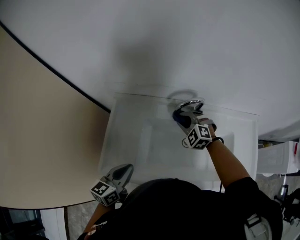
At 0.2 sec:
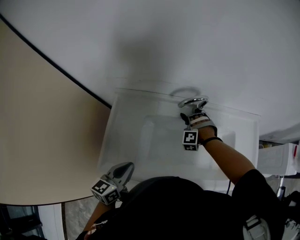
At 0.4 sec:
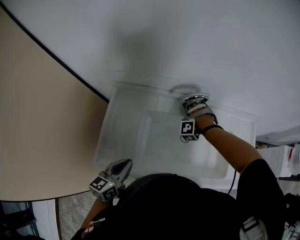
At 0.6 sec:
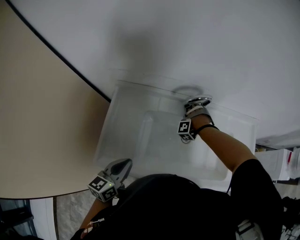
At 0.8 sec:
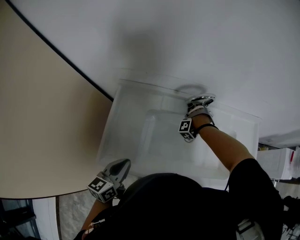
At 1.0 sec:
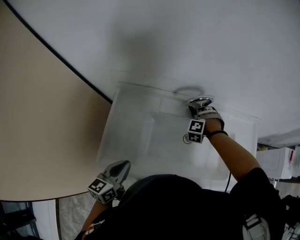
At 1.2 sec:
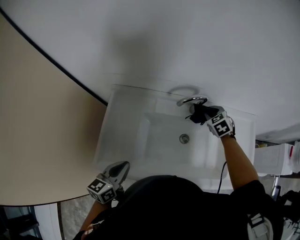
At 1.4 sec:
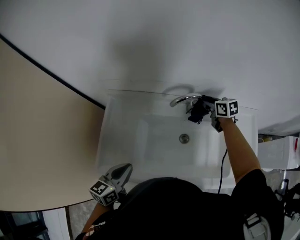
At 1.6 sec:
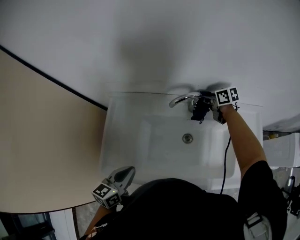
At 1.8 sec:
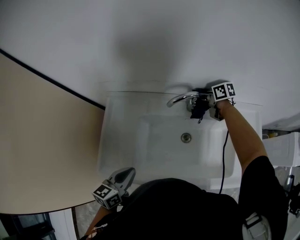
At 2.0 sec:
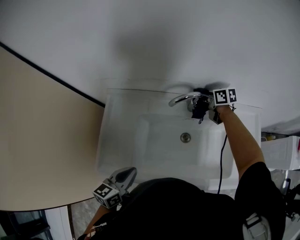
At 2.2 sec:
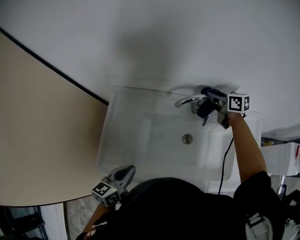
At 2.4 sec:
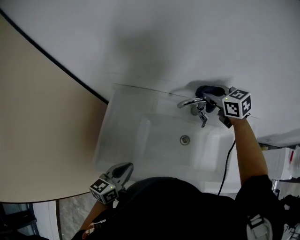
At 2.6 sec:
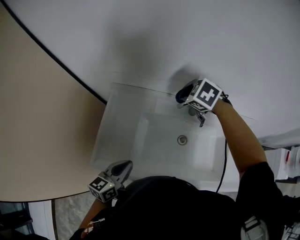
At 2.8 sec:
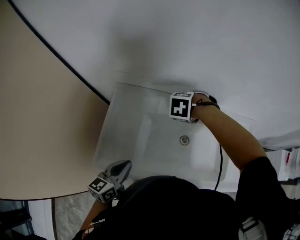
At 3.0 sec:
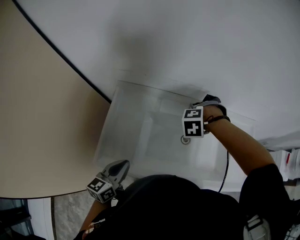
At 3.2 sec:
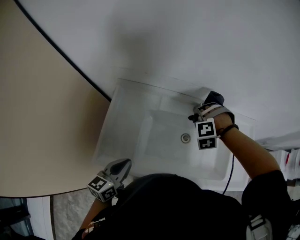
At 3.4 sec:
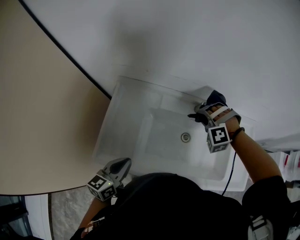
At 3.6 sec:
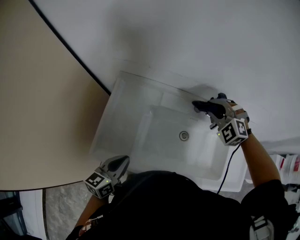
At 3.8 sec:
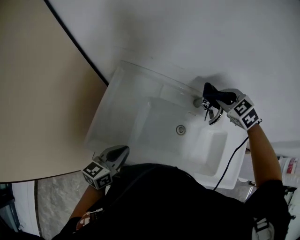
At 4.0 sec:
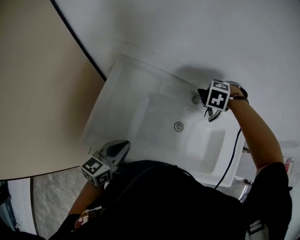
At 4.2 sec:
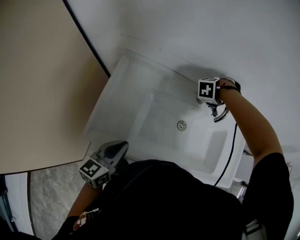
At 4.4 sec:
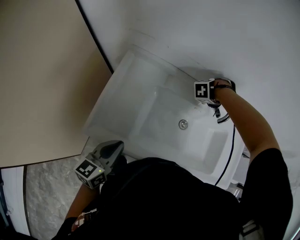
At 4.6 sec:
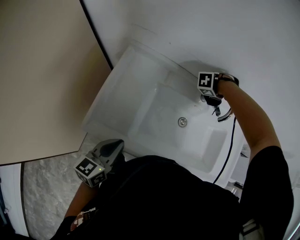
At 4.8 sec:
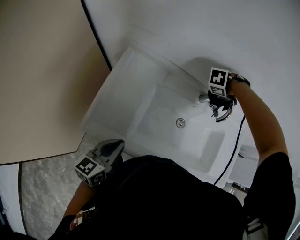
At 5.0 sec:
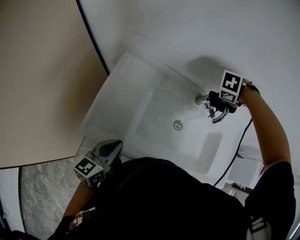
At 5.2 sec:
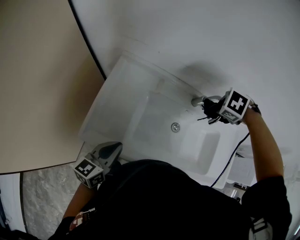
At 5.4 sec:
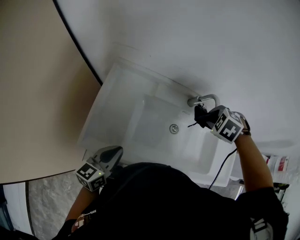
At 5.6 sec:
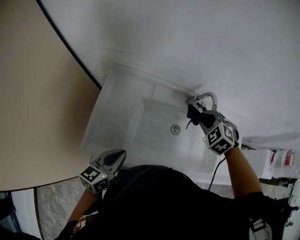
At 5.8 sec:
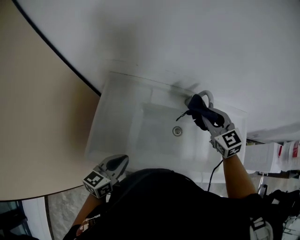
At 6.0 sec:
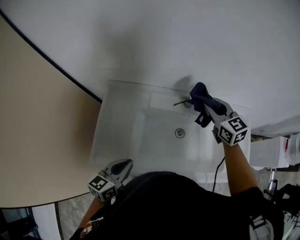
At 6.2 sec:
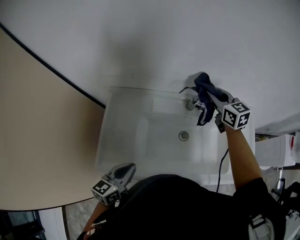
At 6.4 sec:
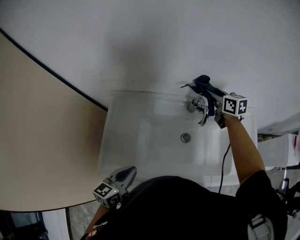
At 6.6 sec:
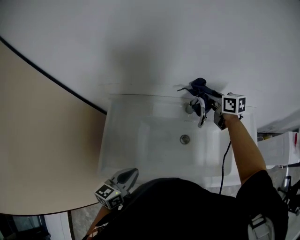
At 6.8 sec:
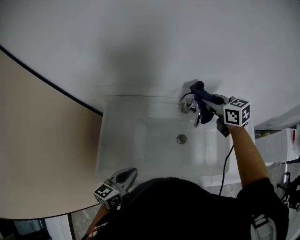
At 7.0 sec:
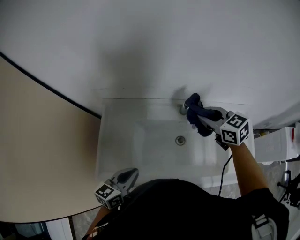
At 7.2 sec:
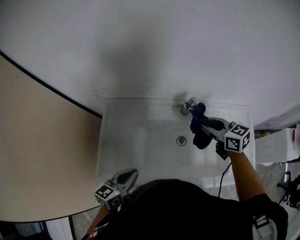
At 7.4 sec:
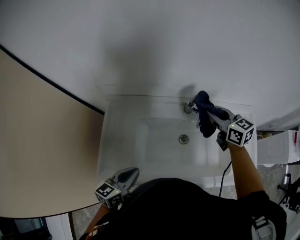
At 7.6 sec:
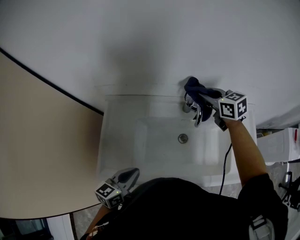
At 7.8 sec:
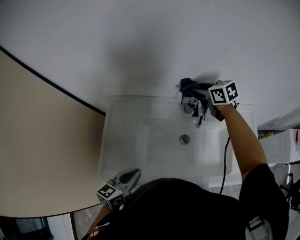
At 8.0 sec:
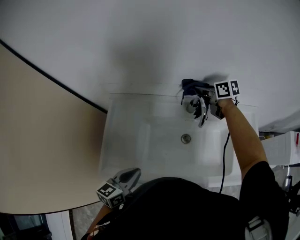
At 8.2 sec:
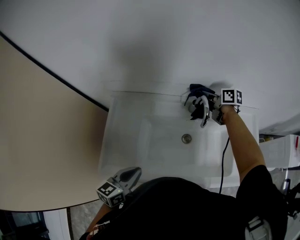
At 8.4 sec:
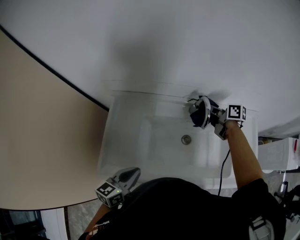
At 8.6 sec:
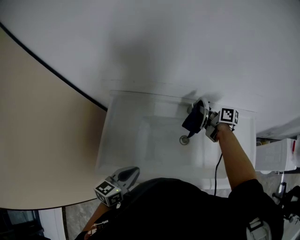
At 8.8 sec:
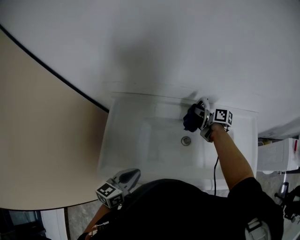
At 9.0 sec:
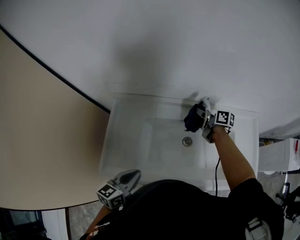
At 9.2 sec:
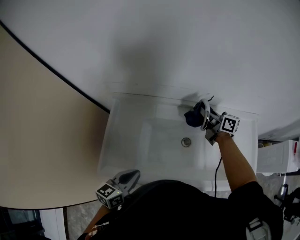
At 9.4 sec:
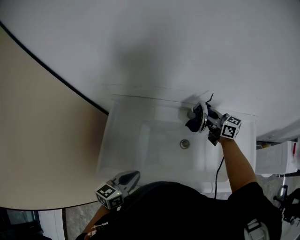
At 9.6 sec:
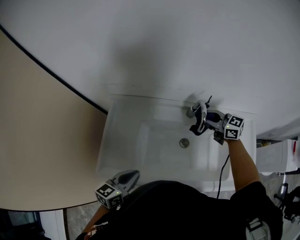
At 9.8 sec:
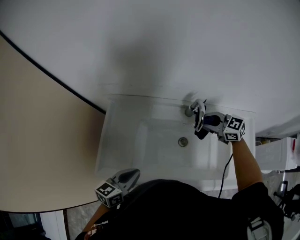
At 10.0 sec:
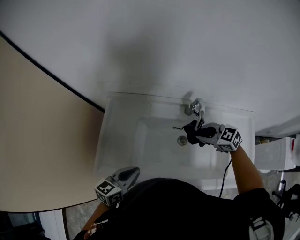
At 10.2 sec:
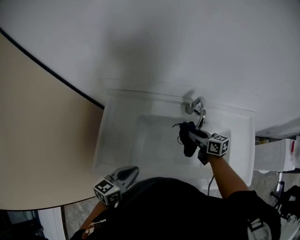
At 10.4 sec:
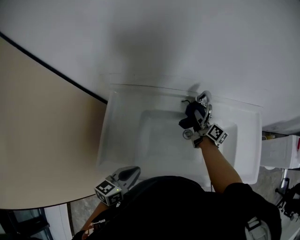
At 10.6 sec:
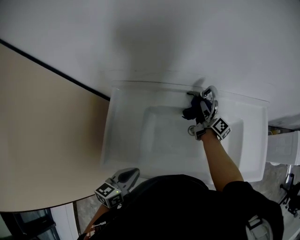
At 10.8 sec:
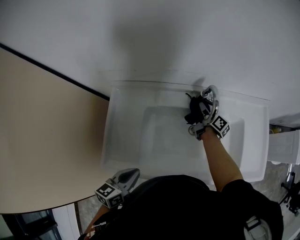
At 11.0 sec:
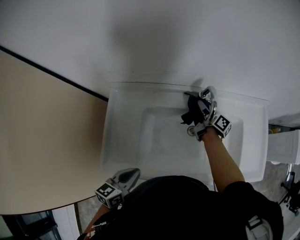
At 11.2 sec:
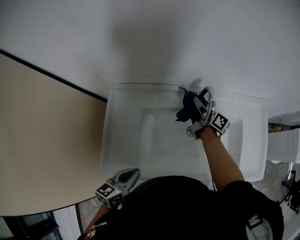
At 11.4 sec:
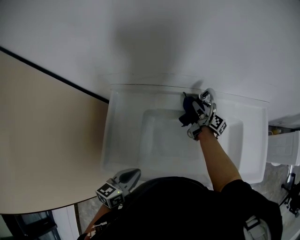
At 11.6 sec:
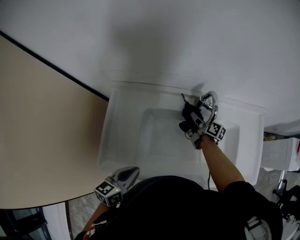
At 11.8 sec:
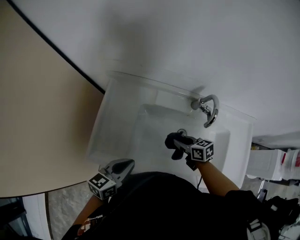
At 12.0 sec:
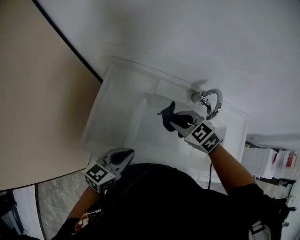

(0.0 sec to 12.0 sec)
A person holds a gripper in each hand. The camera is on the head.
0.0 sec - 1.6 sec: The right gripper travels downward and back again, roughly 15 cm each way, and rolls clockwise, seen from behind, by approximately 80 degrees.
1.6 sec - 3.0 sec: The left gripper changes place by roughly 5 cm. Meanwhile the right gripper travels upward and back again, approximately 15 cm each way, and tips its fingers downward by about 40 degrees.
3.0 sec - 4.4 sec: The right gripper ends up approximately 15 cm from where it was, and rotates about 30 degrees.
4.4 sec - 6.0 sec: The left gripper moves roughly 10 cm, while the right gripper travels upward by roughly 20 cm, and tilts its fingers approximately 30 degrees upward.
6.0 sec - 7.6 sec: The right gripper swings forward and backward, about 15 cm each way, with 2 reversals.
7.6 sec - 9.0 sec: The right gripper heads downward, covering some 15 cm, and twists roughly 40 degrees clockwise, seen from behind.
9.0 sec - 10.4 sec: The right gripper heads downward, covering about 5 cm, and turns by about 20 degrees.
10.4 sec - 12.0 sec: The right gripper goes up and down, about 15 cm each way, reversing 3 times, and angles its fingers downward, by roughly 40 degrees.

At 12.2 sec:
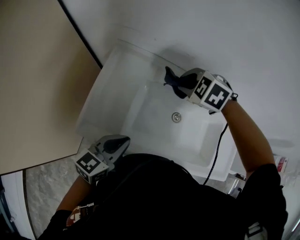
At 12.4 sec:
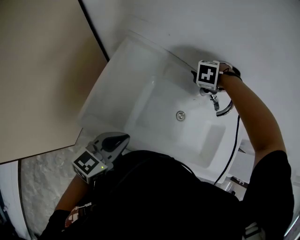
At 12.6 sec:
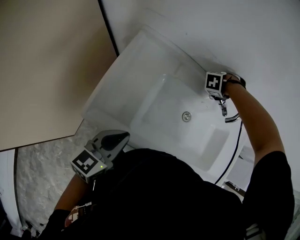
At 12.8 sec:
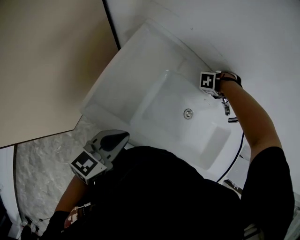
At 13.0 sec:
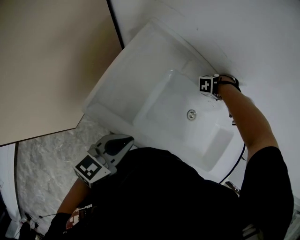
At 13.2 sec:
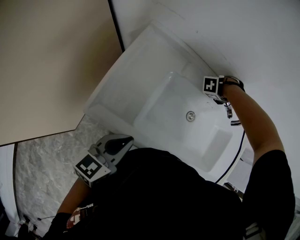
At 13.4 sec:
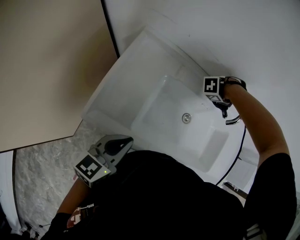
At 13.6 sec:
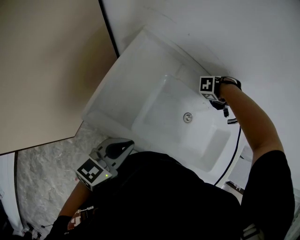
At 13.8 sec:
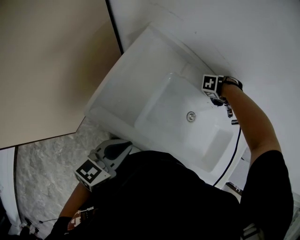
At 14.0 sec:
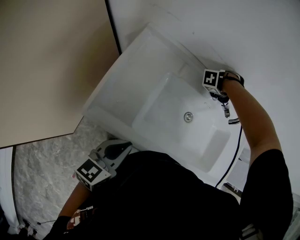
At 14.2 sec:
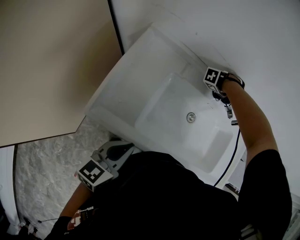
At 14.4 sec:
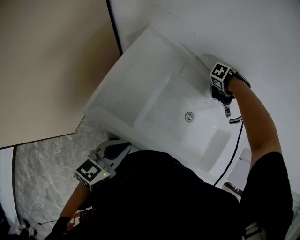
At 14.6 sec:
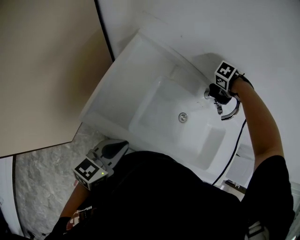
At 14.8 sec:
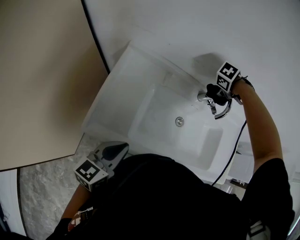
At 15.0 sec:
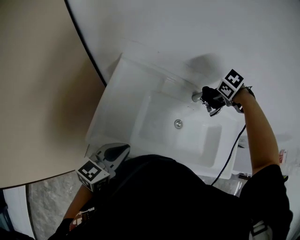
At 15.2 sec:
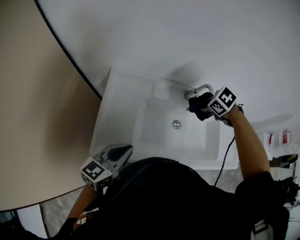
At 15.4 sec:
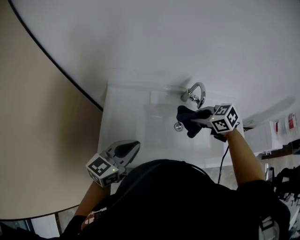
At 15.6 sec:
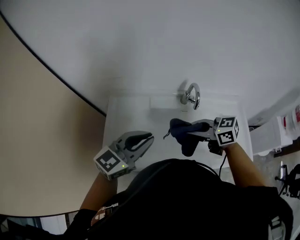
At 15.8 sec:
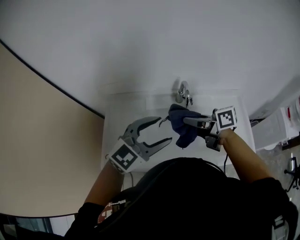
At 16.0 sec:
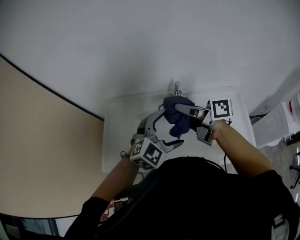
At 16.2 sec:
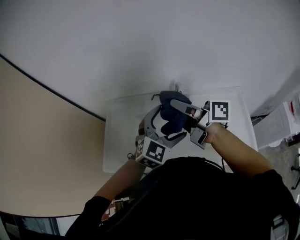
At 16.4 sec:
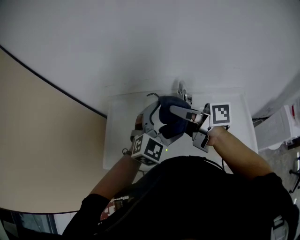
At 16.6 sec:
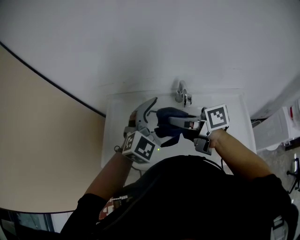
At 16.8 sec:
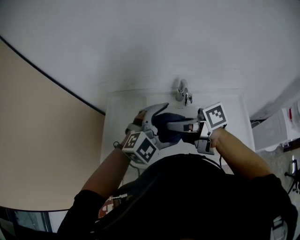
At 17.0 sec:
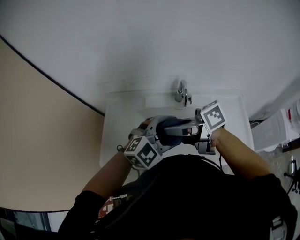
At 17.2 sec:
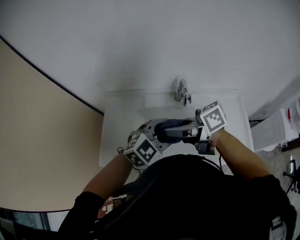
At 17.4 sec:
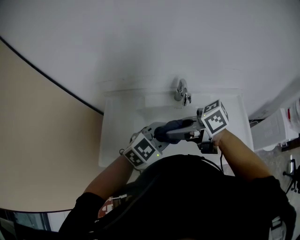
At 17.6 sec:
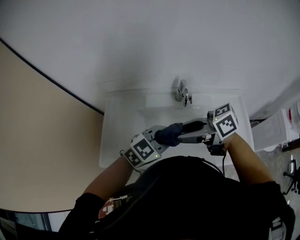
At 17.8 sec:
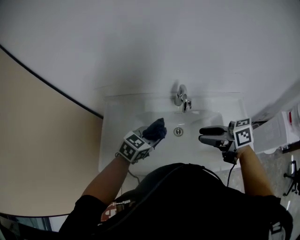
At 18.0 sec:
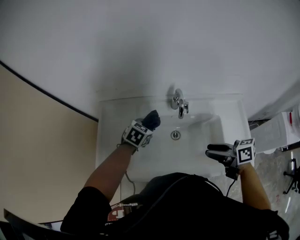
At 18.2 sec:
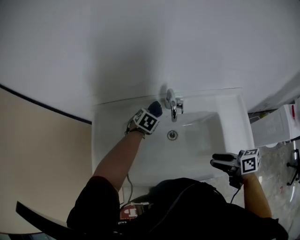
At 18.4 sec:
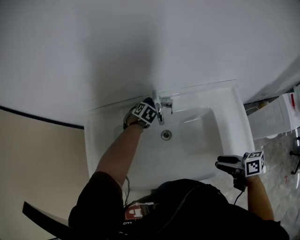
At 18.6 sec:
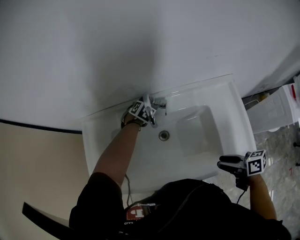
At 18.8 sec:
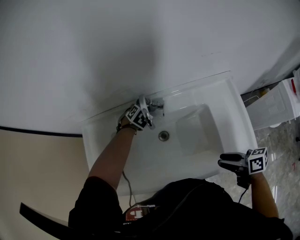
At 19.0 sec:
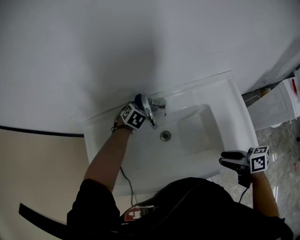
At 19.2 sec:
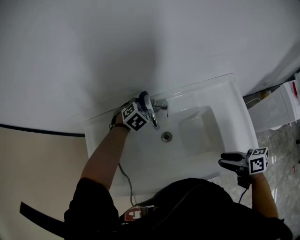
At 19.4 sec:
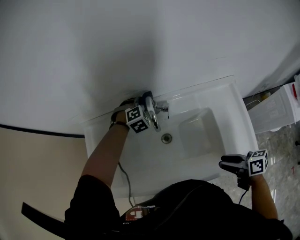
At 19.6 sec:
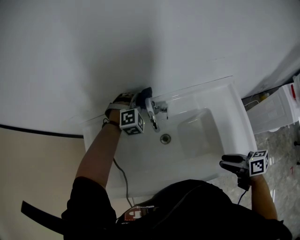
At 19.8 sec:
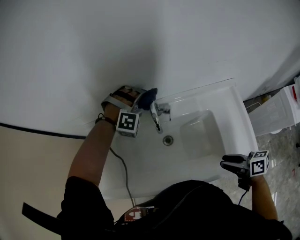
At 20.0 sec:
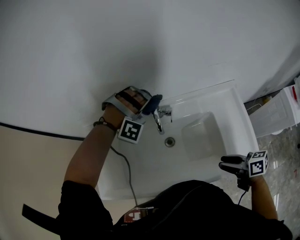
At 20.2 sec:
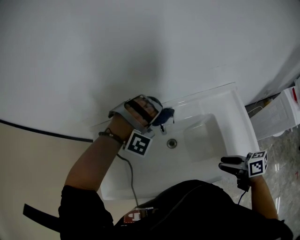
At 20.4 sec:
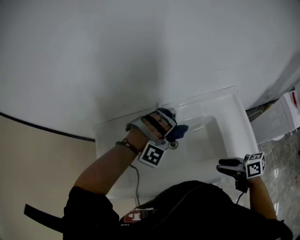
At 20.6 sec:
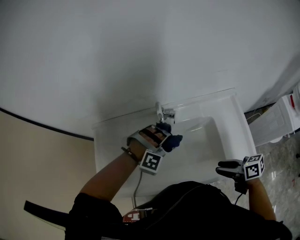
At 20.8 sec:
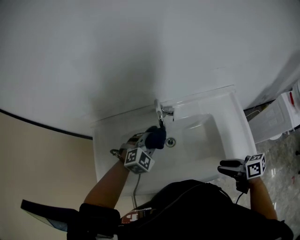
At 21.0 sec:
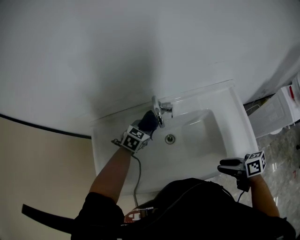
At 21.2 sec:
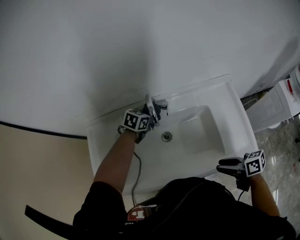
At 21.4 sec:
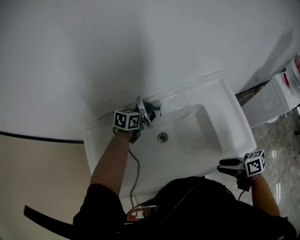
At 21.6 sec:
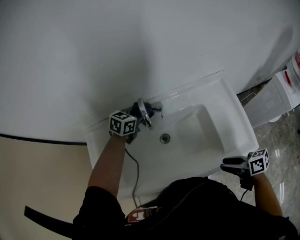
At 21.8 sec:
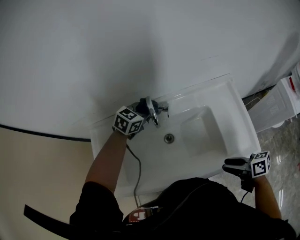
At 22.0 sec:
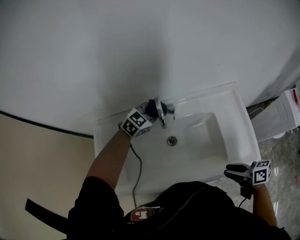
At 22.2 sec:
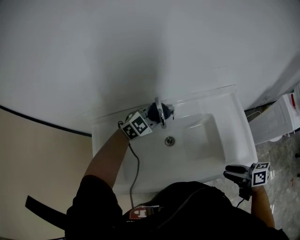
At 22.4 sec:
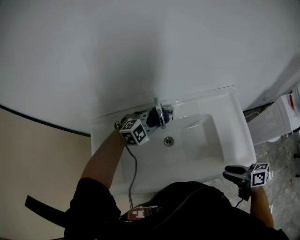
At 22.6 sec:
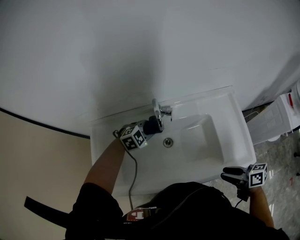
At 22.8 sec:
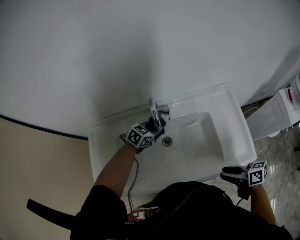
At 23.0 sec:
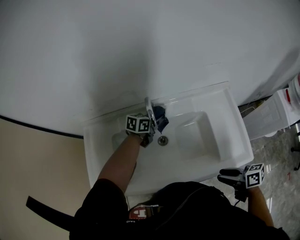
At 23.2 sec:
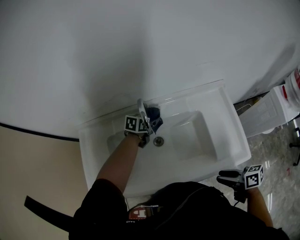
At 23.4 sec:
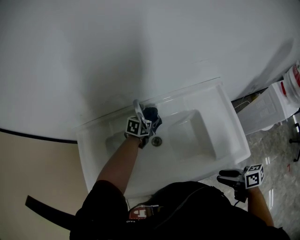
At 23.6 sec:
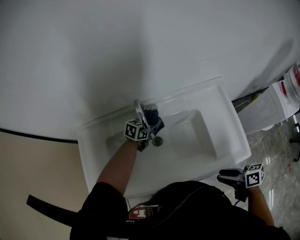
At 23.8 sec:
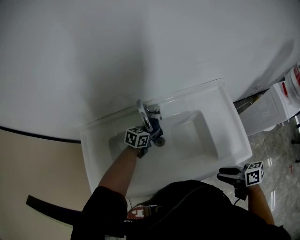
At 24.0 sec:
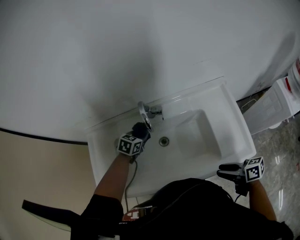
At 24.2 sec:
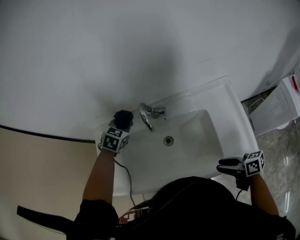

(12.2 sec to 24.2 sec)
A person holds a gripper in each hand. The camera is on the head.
12.2 sec - 13.8 sec: The left gripper ends up some 5 cm from where it was, while the right gripper moves up and down over approximately 20 cm, changing direction 2 times, and rotates about 60 degrees.
13.8 sec - 15.2 sec: The left gripper moves upward, some 5 cm, and swivels approximately 20 degrees, while the right gripper moves upward, some 20 cm, and angles its fingers downward, by some 40 degrees.
15.2 sec - 16.6 sec: The left gripper shifts by about 30 cm, rotates around the line of its fingers by about 60 degrees, clockwise from behind, and opens up. Meanwhile the right gripper goes roughly 15 cm upward, and tips its fingers upward by about 80 degrees.
16.6 sec - 18.2 sec: The right gripper moves about 30 cm, rotates about 20 degrees, and opens up; the left gripper heads downward, covering approximately 25 cm, tilts its fingers roughly 40 degrees downward, and closes up.
18.2 sec - 19.8 sec: The right gripper shifts approximately 10 cm to the right. The left gripper shifts about 15 cm upward and to the right, and rolls clockwise, seen from behind, by some 80 degrees.
19.8 sec - 21.2 sec: The left gripper goes roughly 10 cm downward, reaches approximately 20 cm backward, then returns, and rotates around the line of its fingers by approximately 100 degrees, counterclockwise from behind, while the right gripper ends up about 5 cm from where it was.
21.2 sec - 22.6 sec: The left gripper is displaced backward by some 5 cm, moves approximately 10 cm upward and comes back, and twists about 50 degrees clockwise, seen from behind.
22.6 sec - 24.2 sec: The left gripper moves upward, some 10 cm, and swivels approximately 40 degrees.
